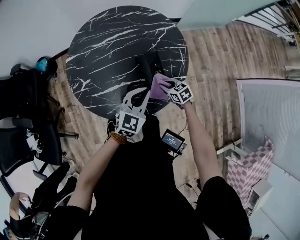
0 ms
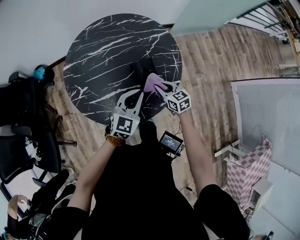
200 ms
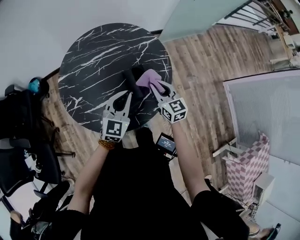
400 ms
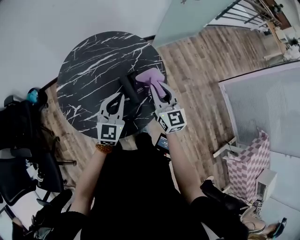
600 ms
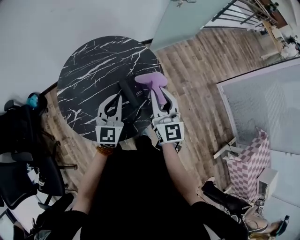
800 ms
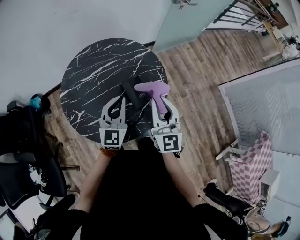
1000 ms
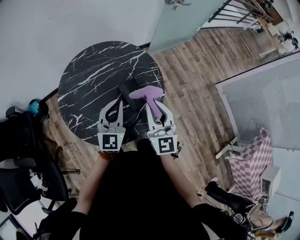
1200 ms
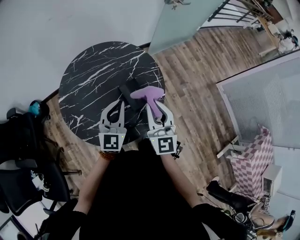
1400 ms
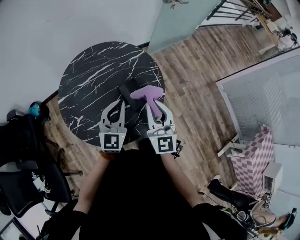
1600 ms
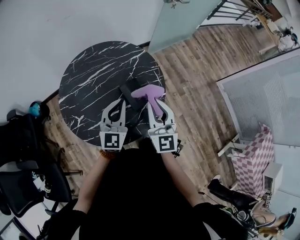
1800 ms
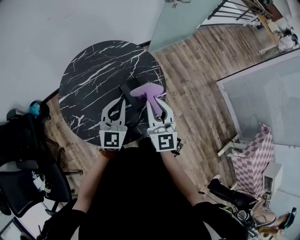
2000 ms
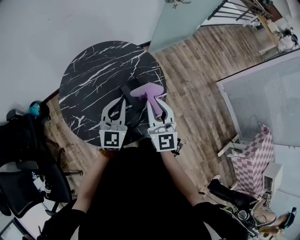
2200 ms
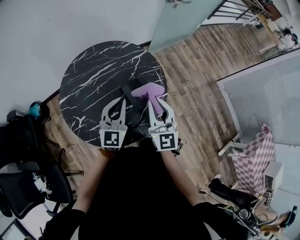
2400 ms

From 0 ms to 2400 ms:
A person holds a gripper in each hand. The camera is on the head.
From 0 ms to 1200 ms: The left gripper heads upward, covering approximately 10 cm. The right gripper moves upward, approximately 35 cm, and tilts its fingers some 50 degrees upward.
From 1200 ms to 2400 ms: The grippers stay close to where they were, moving slightly.

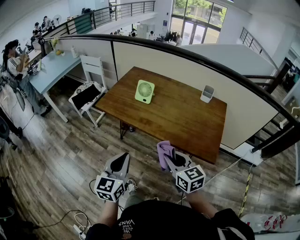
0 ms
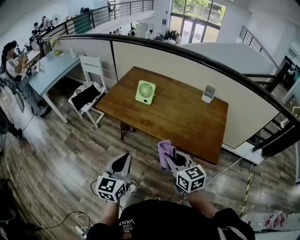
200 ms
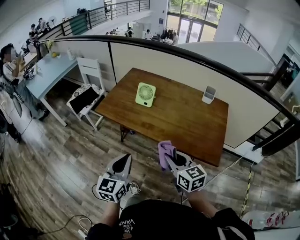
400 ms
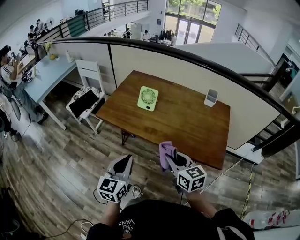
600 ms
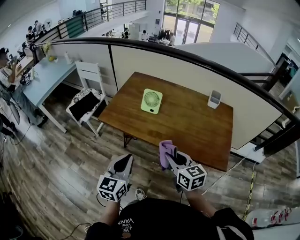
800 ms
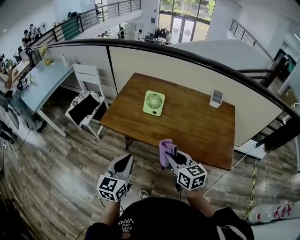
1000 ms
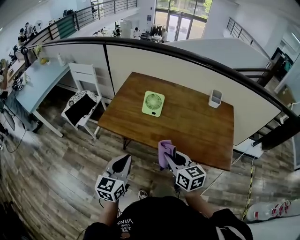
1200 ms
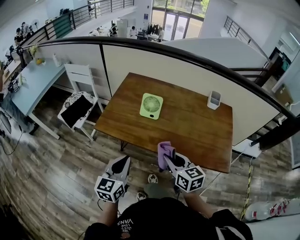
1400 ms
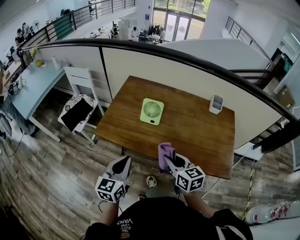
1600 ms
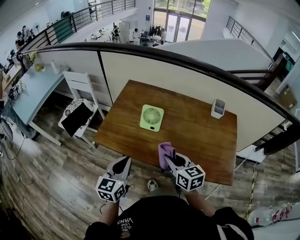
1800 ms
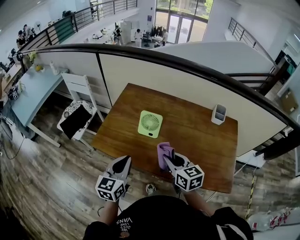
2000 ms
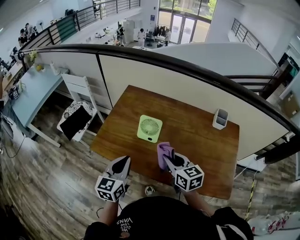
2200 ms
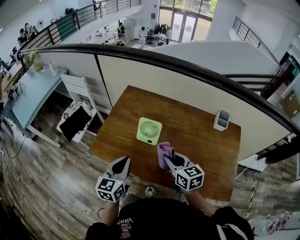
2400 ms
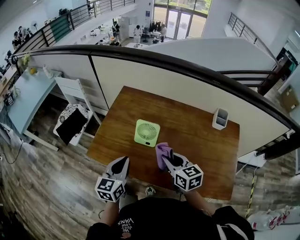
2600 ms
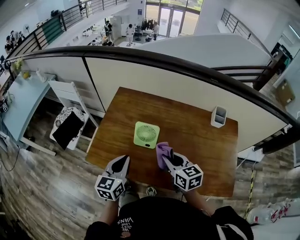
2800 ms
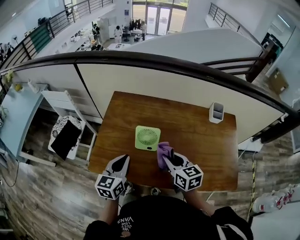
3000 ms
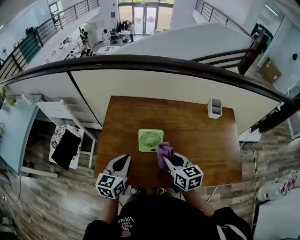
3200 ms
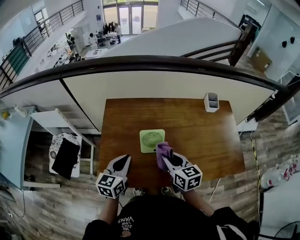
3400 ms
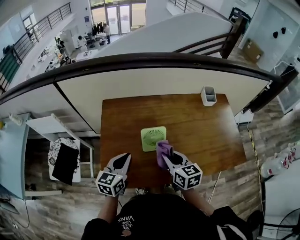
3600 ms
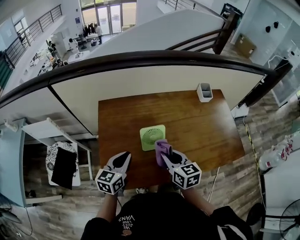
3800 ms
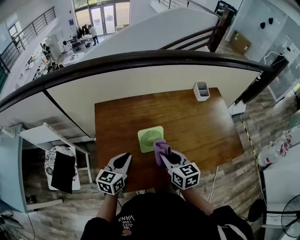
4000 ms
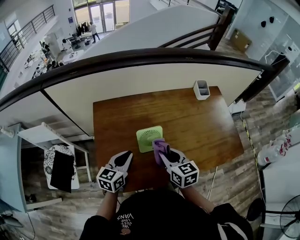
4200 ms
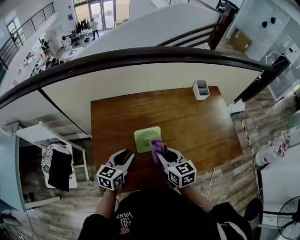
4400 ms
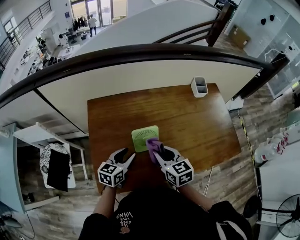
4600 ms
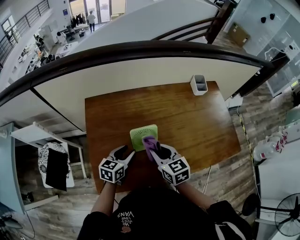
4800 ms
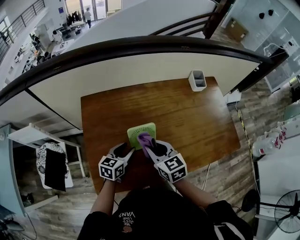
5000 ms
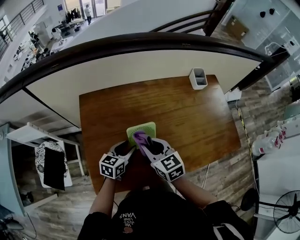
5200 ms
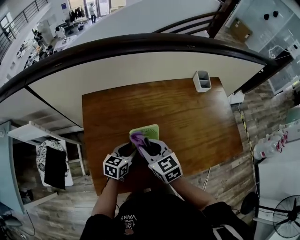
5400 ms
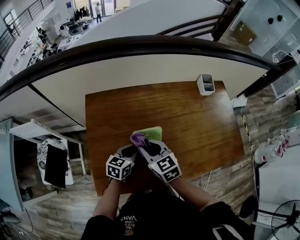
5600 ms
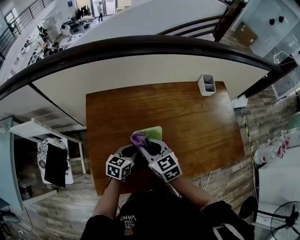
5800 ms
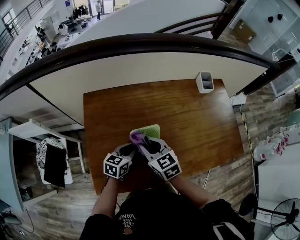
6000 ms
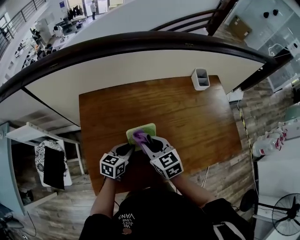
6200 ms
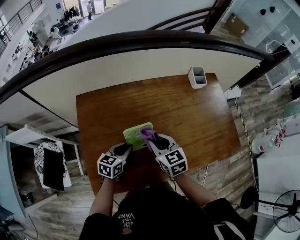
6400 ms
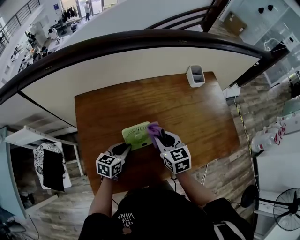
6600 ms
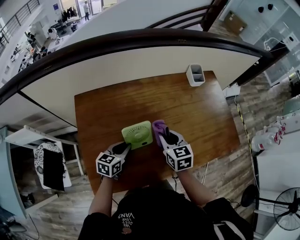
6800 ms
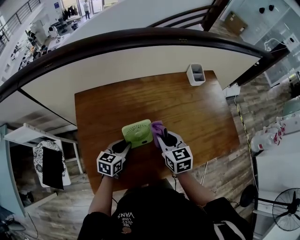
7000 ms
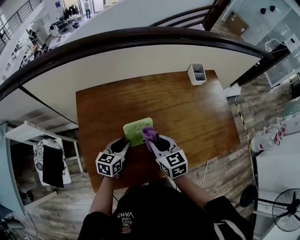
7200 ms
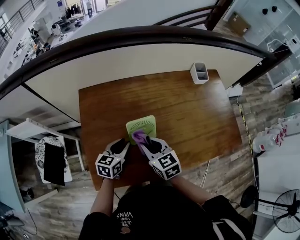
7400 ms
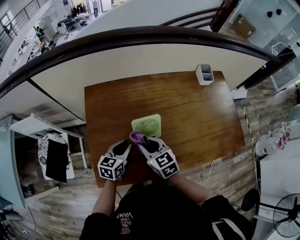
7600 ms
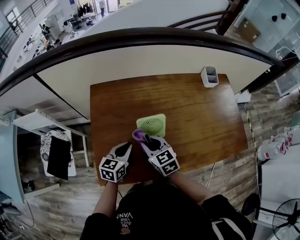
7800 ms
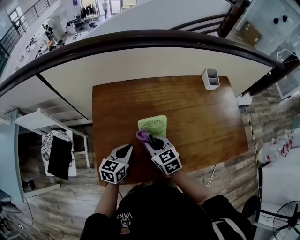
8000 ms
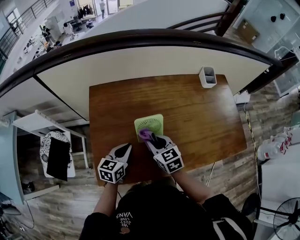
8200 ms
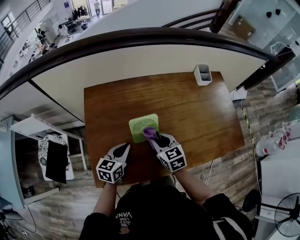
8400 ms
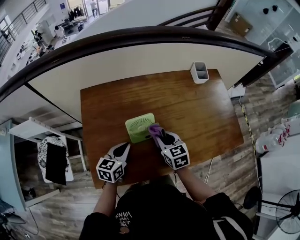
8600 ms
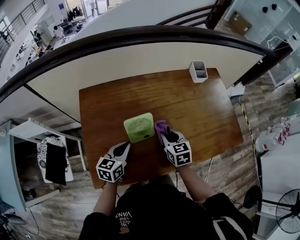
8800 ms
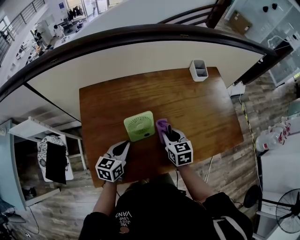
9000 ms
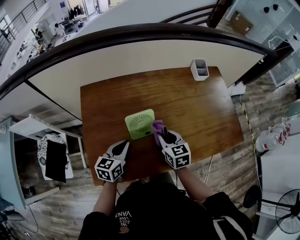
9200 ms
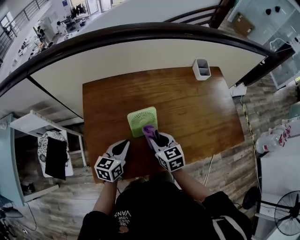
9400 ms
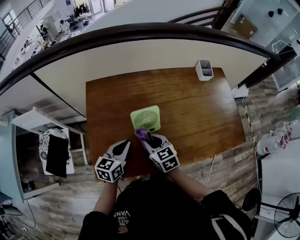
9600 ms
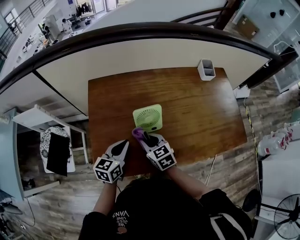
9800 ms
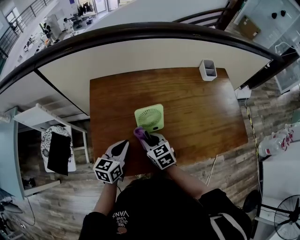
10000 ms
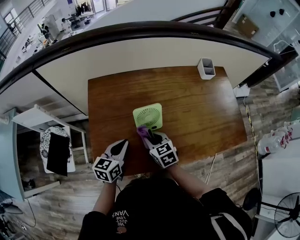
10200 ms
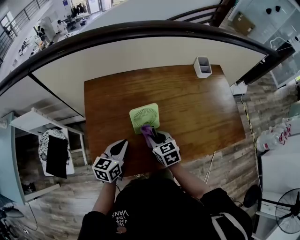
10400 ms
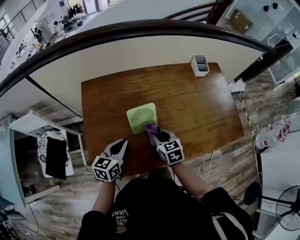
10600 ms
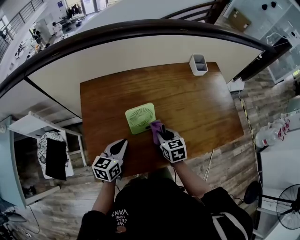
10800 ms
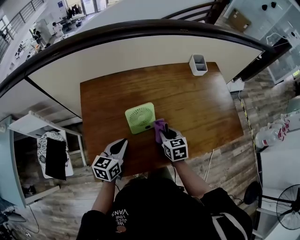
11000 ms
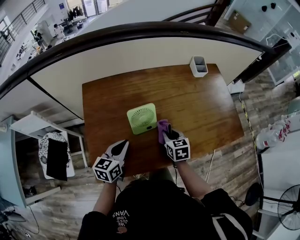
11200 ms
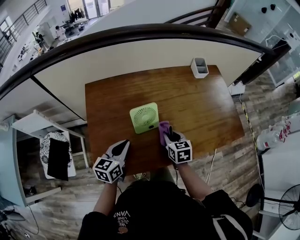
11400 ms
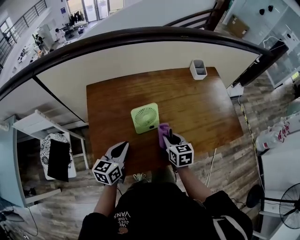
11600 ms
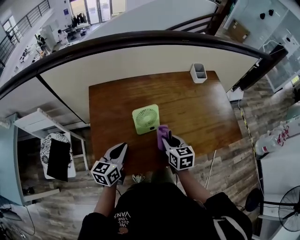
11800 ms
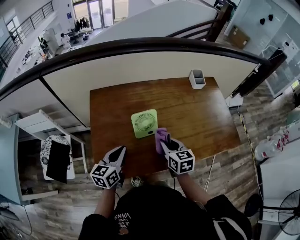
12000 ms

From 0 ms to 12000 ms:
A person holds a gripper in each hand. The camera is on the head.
From 0 ms to 1600 ms: Both grippers move forward and to the left, about 25 cm.
From 1600 ms to 3000 ms: The two grippers go about 20 cm forward.
From 3000 ms to 4400 ms: The right gripper shifts by some 10 cm; the left gripper ends up some 10 cm from where it was, and turns by some 30 degrees.
From 4400 ms to 6000 ms: The left gripper heads downward, covering approximately 10 cm, and opens, then closes once more. Meanwhile the right gripper travels to the left by roughly 5 cm.
From 6000 ms to 7600 ms: The right gripper reaches approximately 15 cm to the right, then returns. Meanwhile the left gripper moves approximately 5 cm.
From 7600 ms to 9000 ms: The right gripper shifts about 15 cm to the right, and turns by about 20 degrees. Meanwhile the left gripper closes.
From 9000 ms to 10400 ms: The right gripper is displaced to the left by about 10 cm.
From 10400 ms to 12000 ms: The right gripper travels upward and to the right by approximately 10 cm, while the left gripper changes place by about 5 cm.

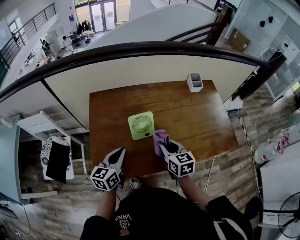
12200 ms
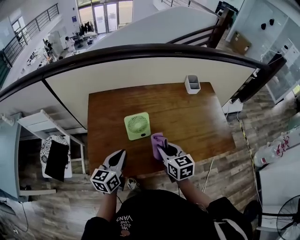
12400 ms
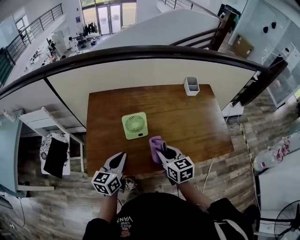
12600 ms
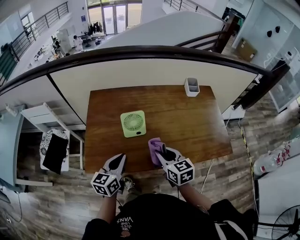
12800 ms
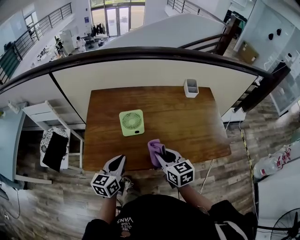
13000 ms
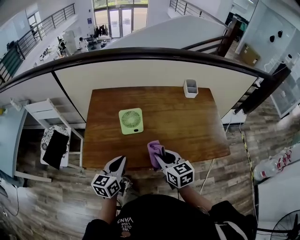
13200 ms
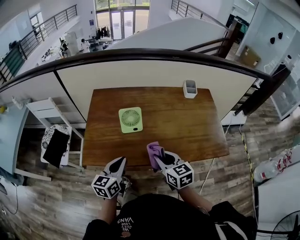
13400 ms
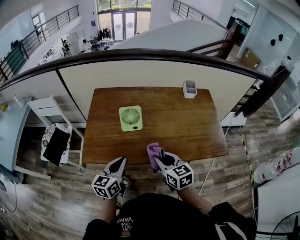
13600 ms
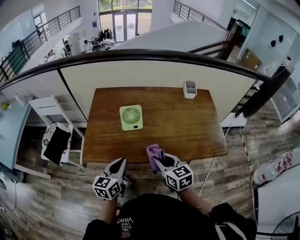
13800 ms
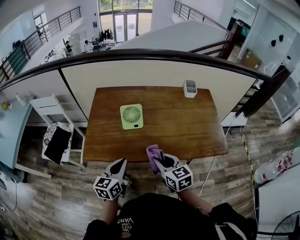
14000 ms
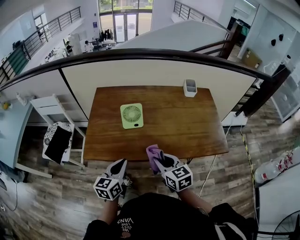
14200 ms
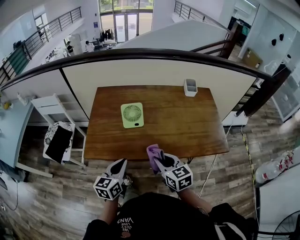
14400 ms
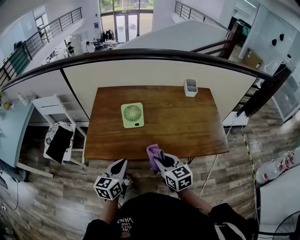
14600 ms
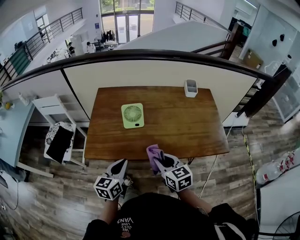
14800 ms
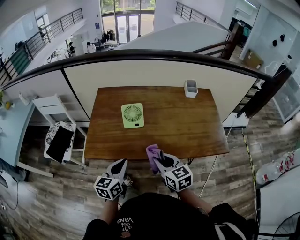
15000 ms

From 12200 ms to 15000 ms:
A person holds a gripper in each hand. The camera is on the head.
From 12200 ms to 13600 ms: The grippers both shift backward and to the right by about 15 cm.
From 13600 ms to 15000 ms: The grippers stay close to where they were, moving slightly.

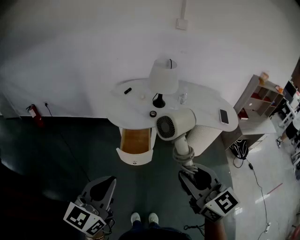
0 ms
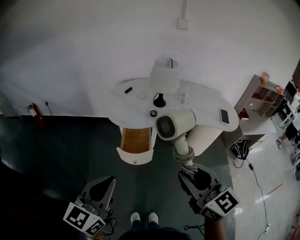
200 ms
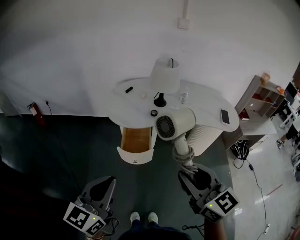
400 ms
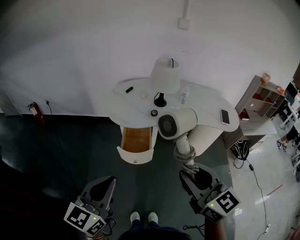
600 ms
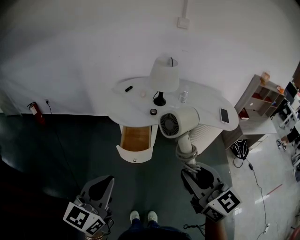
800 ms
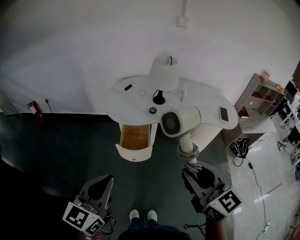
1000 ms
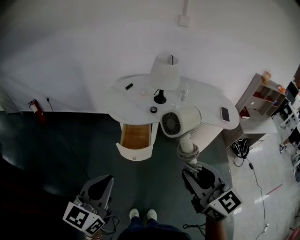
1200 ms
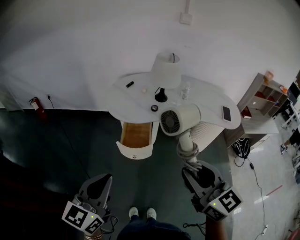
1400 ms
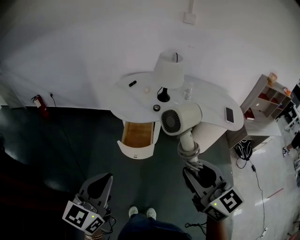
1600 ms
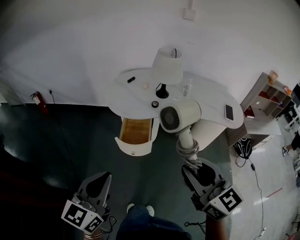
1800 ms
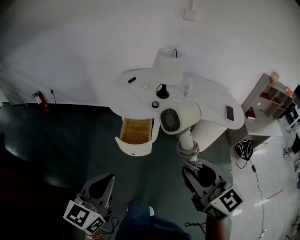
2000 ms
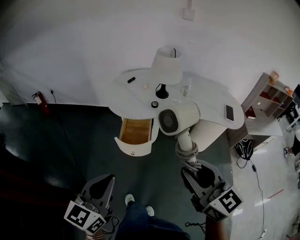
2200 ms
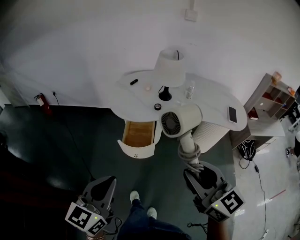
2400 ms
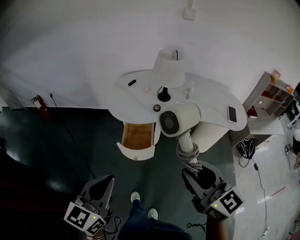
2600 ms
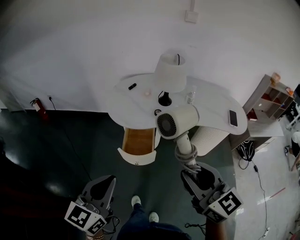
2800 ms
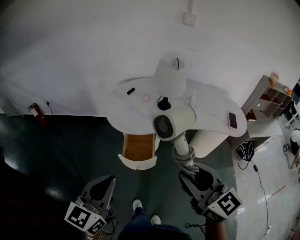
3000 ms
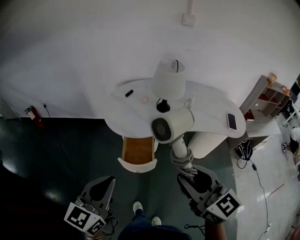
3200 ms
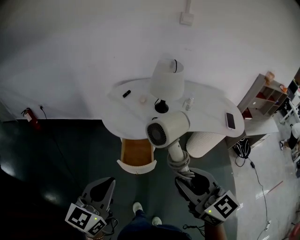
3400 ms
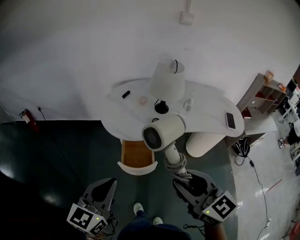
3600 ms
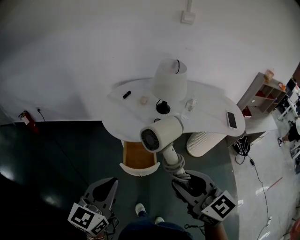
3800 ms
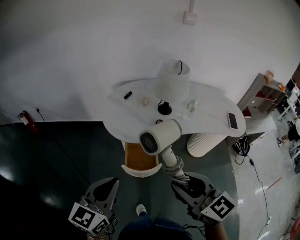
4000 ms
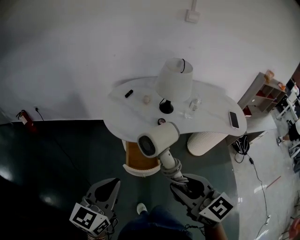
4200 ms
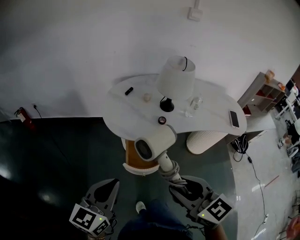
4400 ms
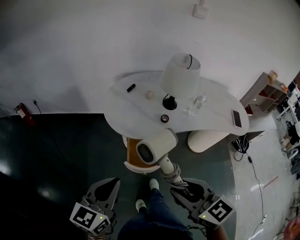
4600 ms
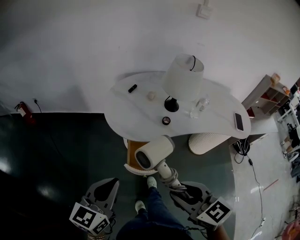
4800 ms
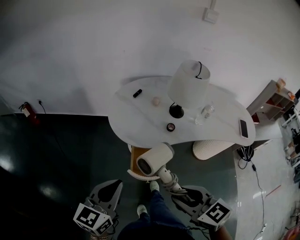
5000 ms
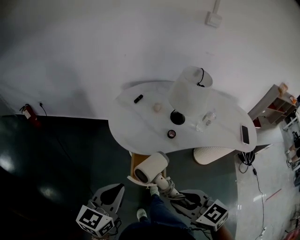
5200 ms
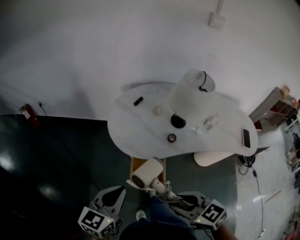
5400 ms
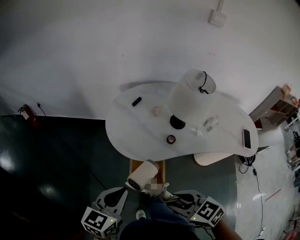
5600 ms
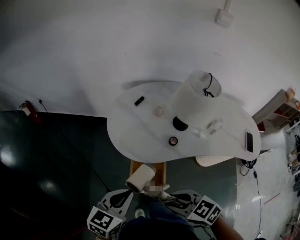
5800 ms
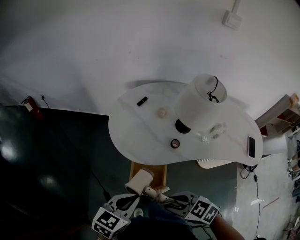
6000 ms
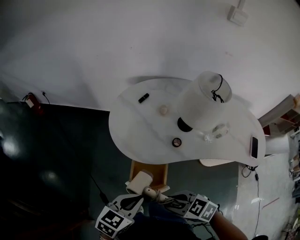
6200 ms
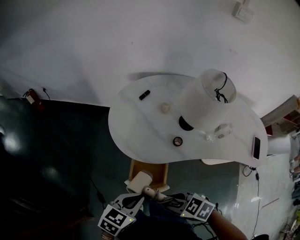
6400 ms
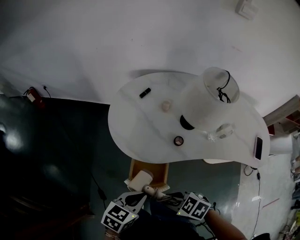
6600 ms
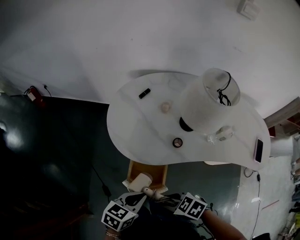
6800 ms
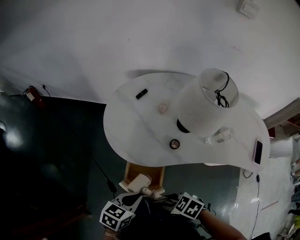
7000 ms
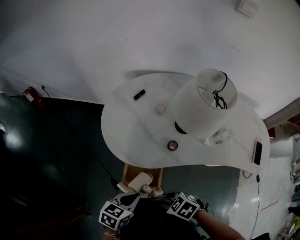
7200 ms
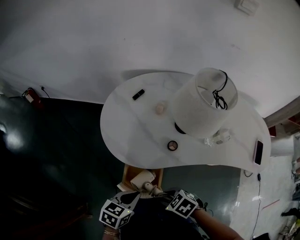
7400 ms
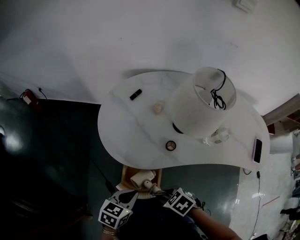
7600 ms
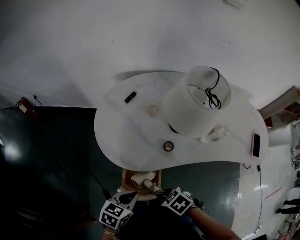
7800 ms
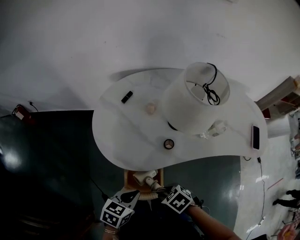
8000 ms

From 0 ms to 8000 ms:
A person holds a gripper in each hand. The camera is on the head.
From 0 ms to 1600 ms: The grippers make only small movements.
From 1600 ms to 3200 ms: Both grippers travel together forward, about 10 cm.
From 3200 ms to 4800 ms: The left gripper travels forward, downward and to the left by some 15 cm. Meanwhile the right gripper moves downward and to the left, some 15 cm, and turns by roughly 20 degrees.
From 4800 ms to 6400 ms: The left gripper changes place by about 15 cm, and swivels roughly 30 degrees; the right gripper heads downward, covering roughly 15 cm, and turns by some 50 degrees.
From 6400 ms to 8000 ms: Both grippers travel together downward, about 10 cm. The right gripper rotates about 30 degrees.
